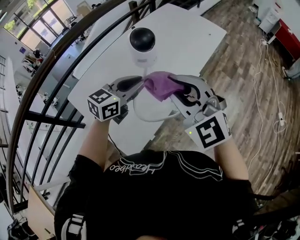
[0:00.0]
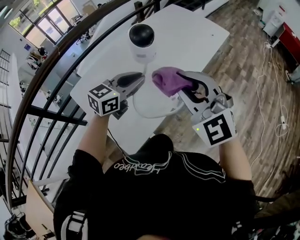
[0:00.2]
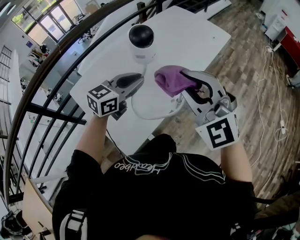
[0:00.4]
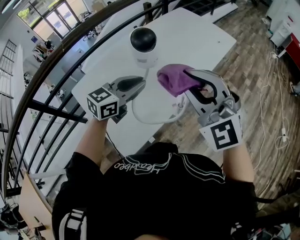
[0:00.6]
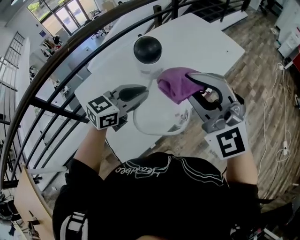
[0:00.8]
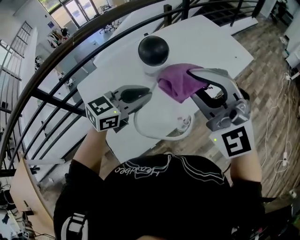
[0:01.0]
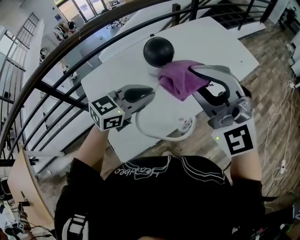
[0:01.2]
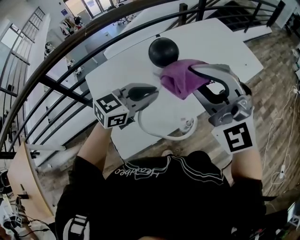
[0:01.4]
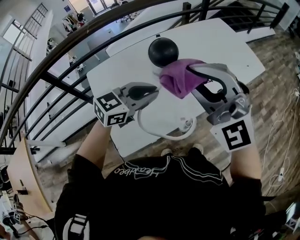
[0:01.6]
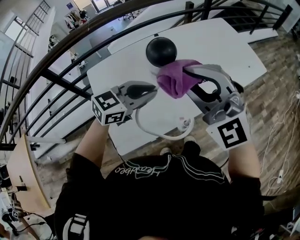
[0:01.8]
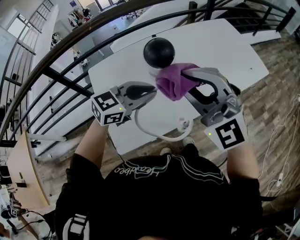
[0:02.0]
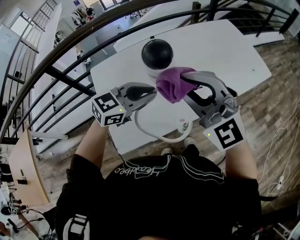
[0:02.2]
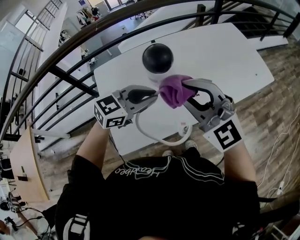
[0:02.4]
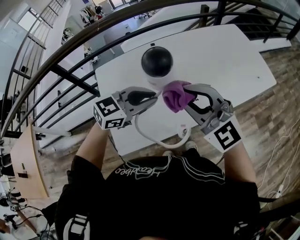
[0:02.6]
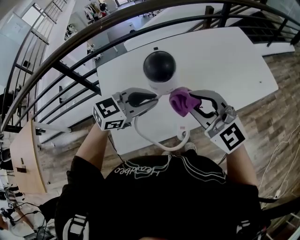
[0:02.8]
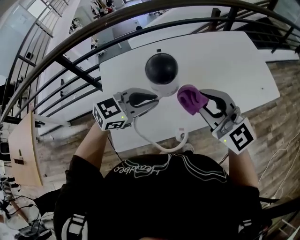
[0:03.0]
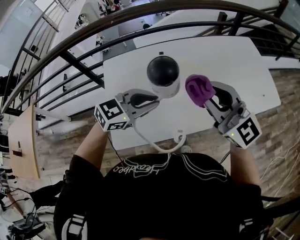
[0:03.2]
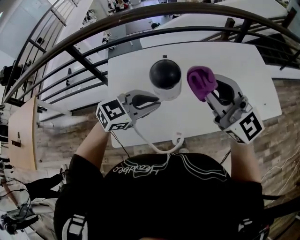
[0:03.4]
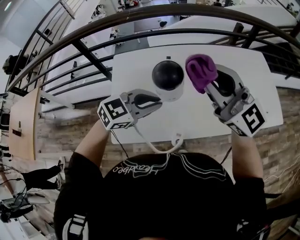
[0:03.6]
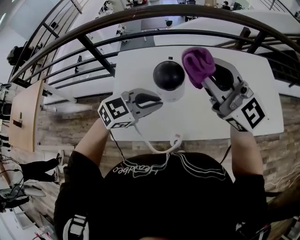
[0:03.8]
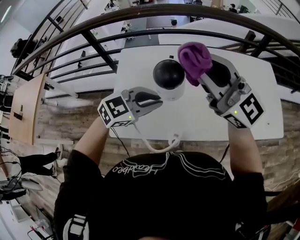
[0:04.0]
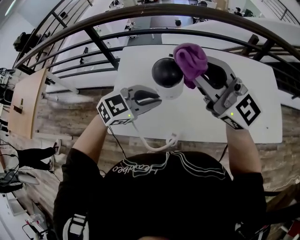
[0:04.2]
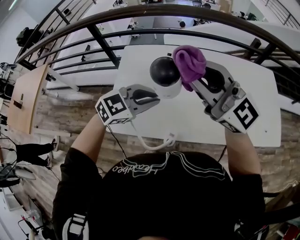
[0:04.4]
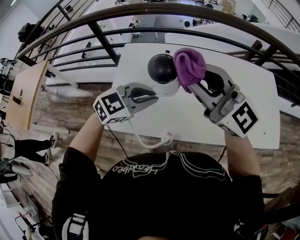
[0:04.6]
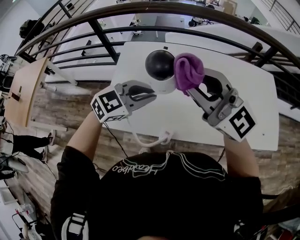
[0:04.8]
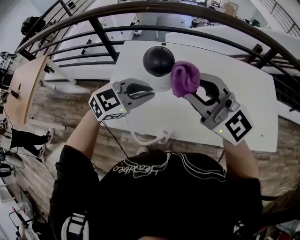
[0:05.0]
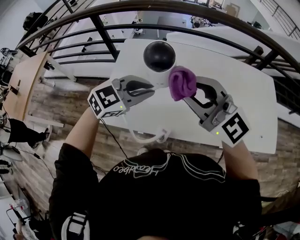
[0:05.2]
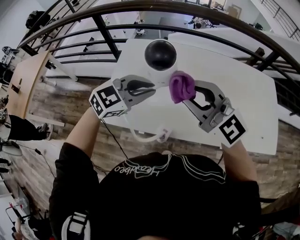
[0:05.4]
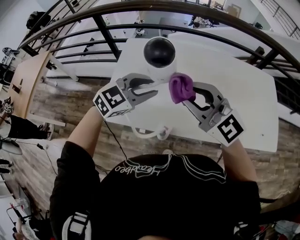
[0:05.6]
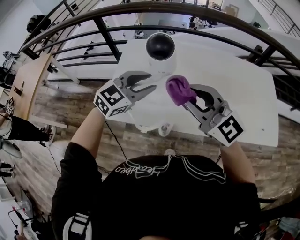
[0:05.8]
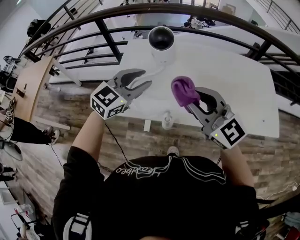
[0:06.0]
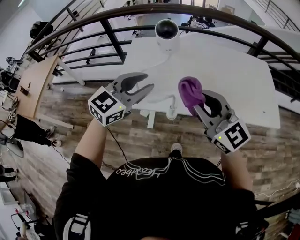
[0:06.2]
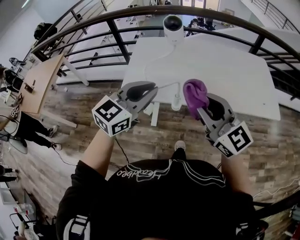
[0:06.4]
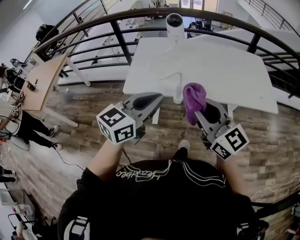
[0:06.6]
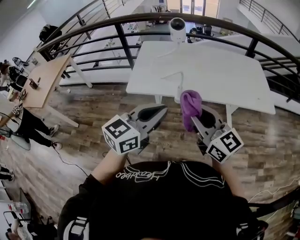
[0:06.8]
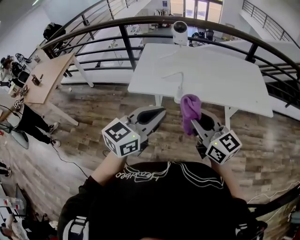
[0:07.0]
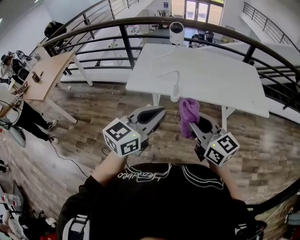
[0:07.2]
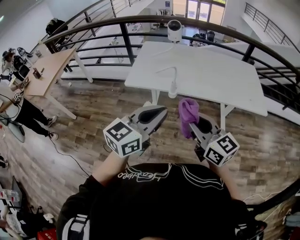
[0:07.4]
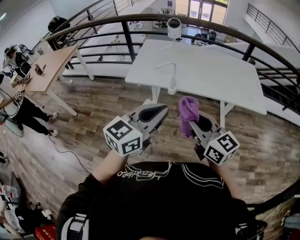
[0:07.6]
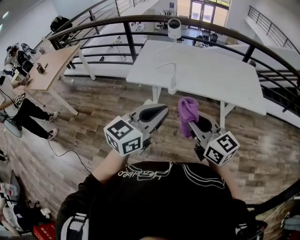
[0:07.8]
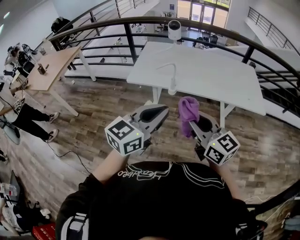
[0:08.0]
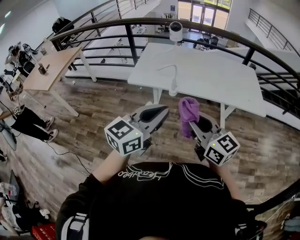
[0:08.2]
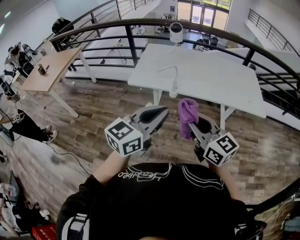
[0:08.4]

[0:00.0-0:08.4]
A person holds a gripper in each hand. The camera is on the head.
0:00.0 to 0:01.4: The right gripper moves forward and upward, some 10 cm, and changes its angle by about 30 degrees.
0:01.4 to 0:02.8: The right gripper heads downward, covering about 10 cm, and changes its angle by roughly 30 degrees.
0:02.8 to 0:04.2: The left gripper changes its angle by some 20 degrees; the right gripper travels upward and forward by roughly 15 cm, and changes its angle by about 30 degrees.
0:04.2 to 0:05.6: The right gripper heads downward and backward, covering about 10 cm.
0:05.6 to 0:07.0: The grippers both shift backward by about 40 cm. The left gripper swivels approximately 30 degrees, and closes. The right gripper rotates approximately 30 degrees.
0:07.0 to 0:08.4: The right gripper heads backward, covering approximately 10 cm; the left gripper shifts approximately 10 cm backward and to the right.

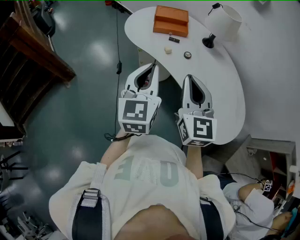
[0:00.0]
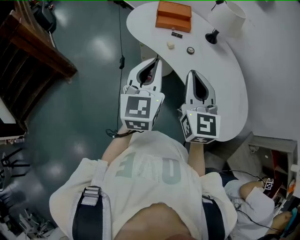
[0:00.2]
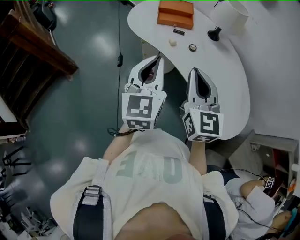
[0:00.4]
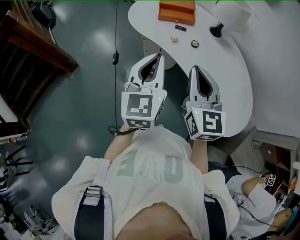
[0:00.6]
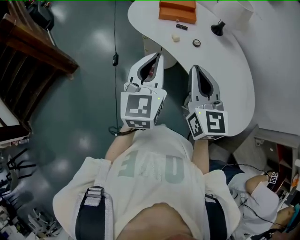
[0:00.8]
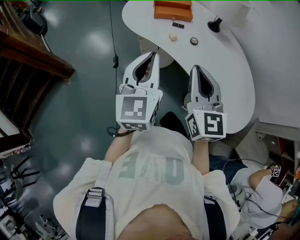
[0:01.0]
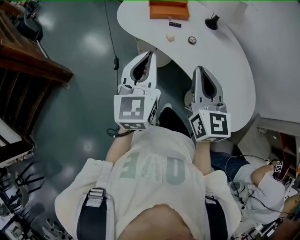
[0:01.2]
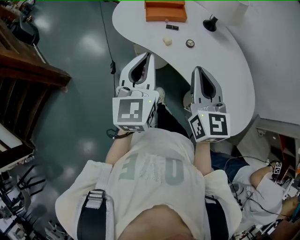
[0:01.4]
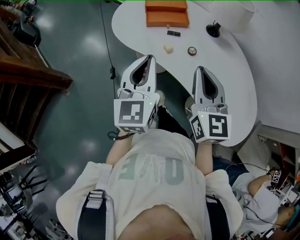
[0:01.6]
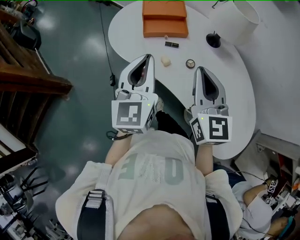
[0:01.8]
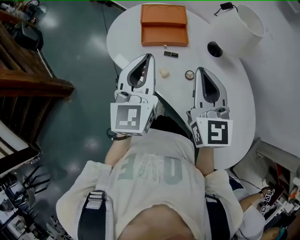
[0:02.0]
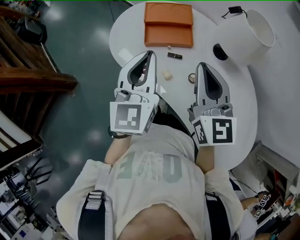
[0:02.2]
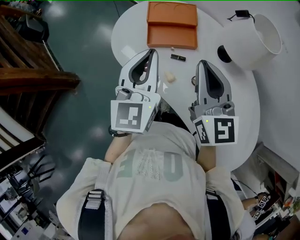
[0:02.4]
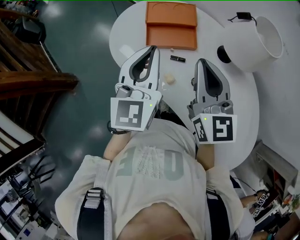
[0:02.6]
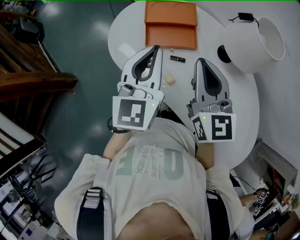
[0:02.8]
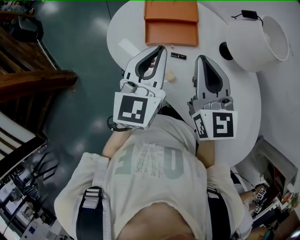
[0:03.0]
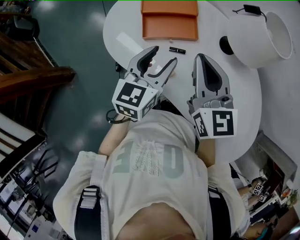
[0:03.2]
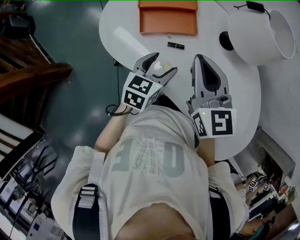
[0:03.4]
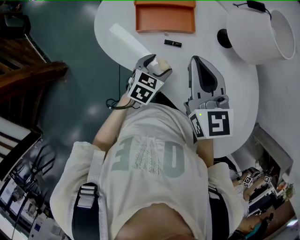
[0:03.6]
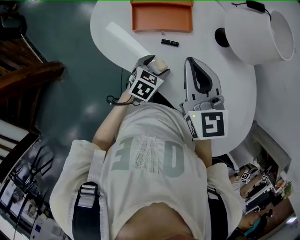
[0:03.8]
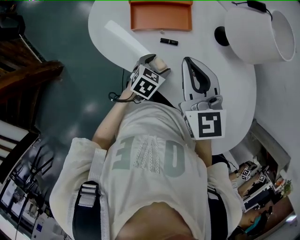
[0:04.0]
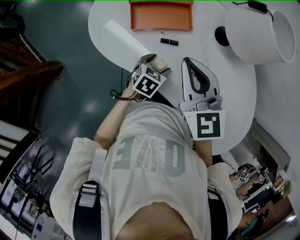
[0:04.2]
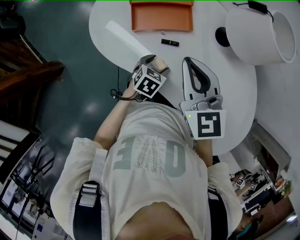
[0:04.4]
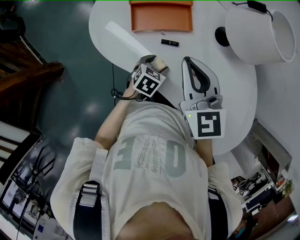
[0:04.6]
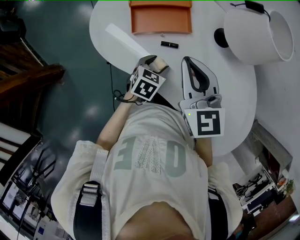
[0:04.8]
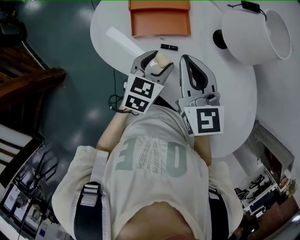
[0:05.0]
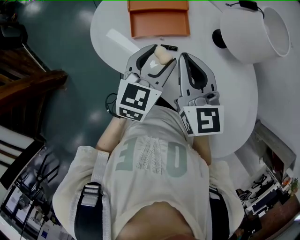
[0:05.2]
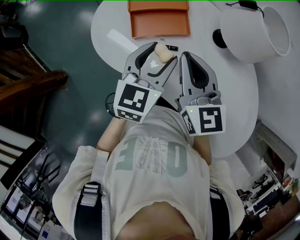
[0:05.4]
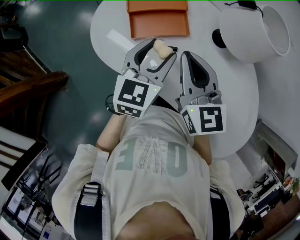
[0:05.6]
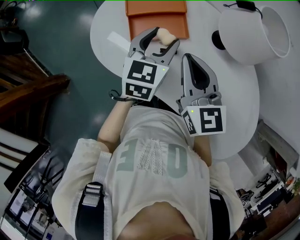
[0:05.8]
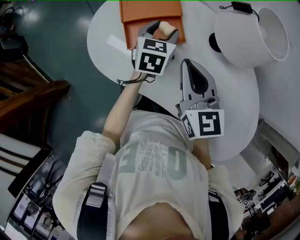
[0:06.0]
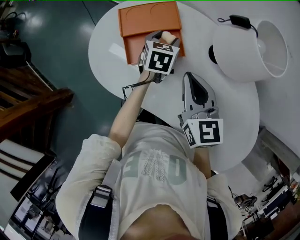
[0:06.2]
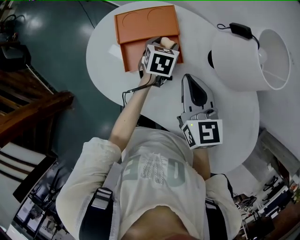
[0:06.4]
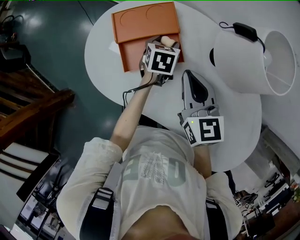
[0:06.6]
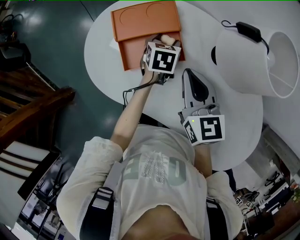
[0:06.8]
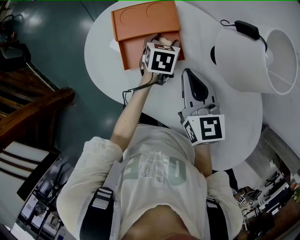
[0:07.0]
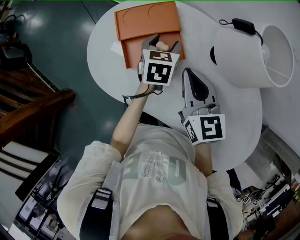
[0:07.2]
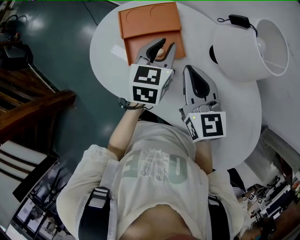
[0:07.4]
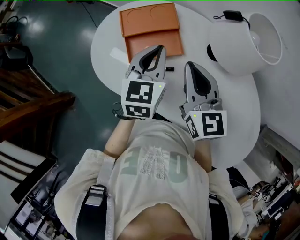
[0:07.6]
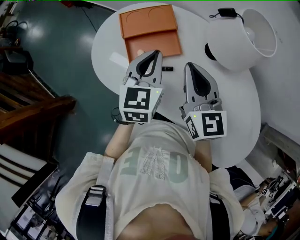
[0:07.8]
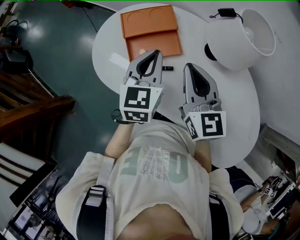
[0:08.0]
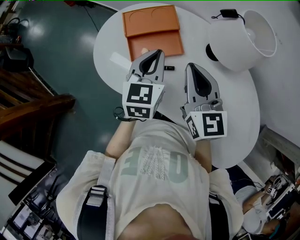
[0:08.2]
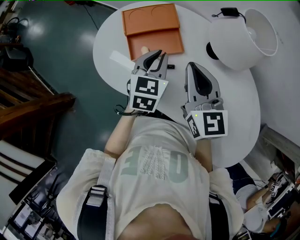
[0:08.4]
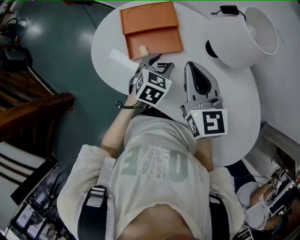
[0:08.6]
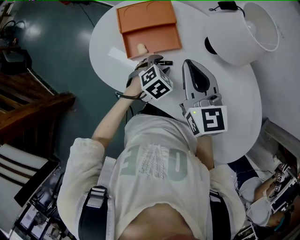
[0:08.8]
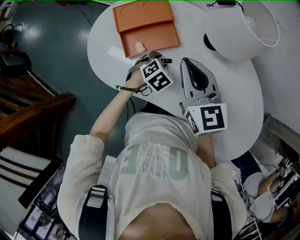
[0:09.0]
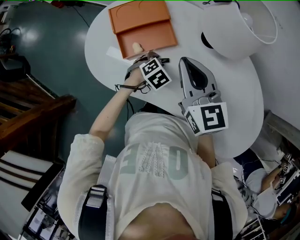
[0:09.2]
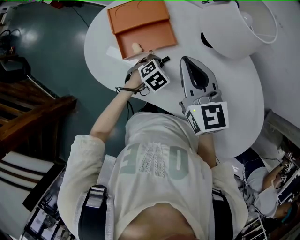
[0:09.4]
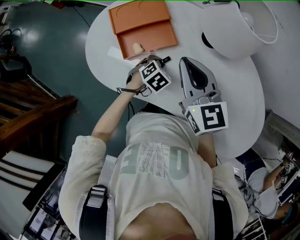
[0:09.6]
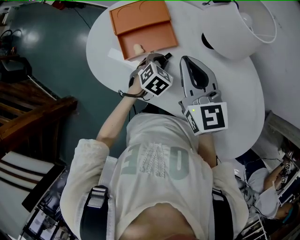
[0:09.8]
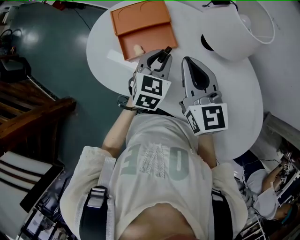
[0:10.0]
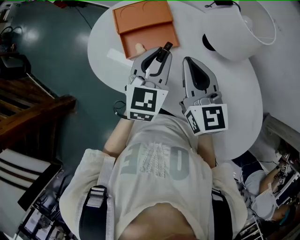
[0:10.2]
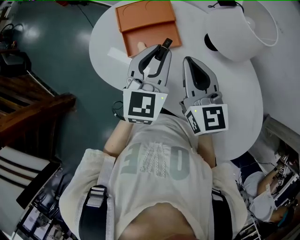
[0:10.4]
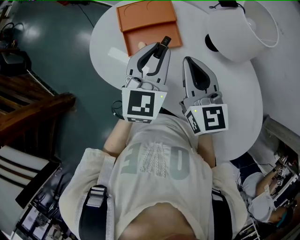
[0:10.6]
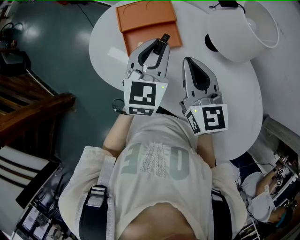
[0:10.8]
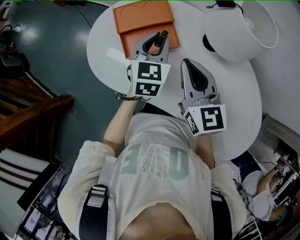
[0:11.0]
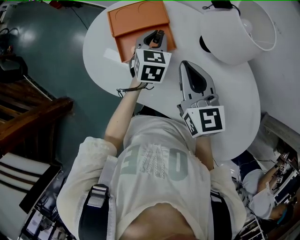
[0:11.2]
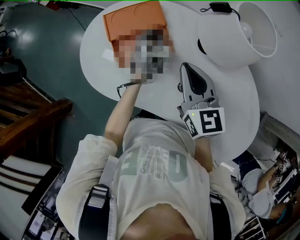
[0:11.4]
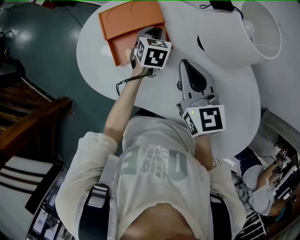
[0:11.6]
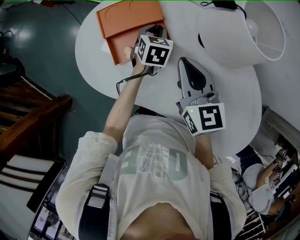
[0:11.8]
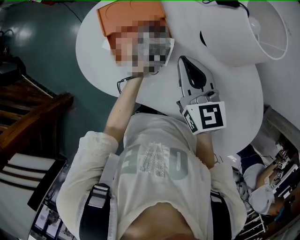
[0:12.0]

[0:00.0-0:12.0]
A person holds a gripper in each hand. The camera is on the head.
0:00.0 to 0:01.6: Both grippers move forward, approximately 15 cm.
0:01.6 to 0:03.0: Both grippers move forward, about 25 cm.
0:03.0 to 0:04.4: The left gripper heads downward, covering some 30 cm, tips its fingers downward by roughly 40 degrees, and opens its fingers; the right gripper shifts approximately 5 cm downward.
0:04.4 to 0:06.0: The left gripper shifts about 25 cm forward and upward, and turns by approximately 20 degrees.
0:06.0 to 0:07.6: The left gripper travels upward and backward by some 10 cm, and closes its fingers.
0:07.6 to 0:09.0: The left gripper is displaced downward by approximately 20 cm, tips its fingers downward by some 40 degrees, and opens its fingers.
0:09.0 to 0:10.4: The left gripper moves upward, roughly 25 cm, and tilts its fingers about 50 degrees upward.
0:10.4 to 0:12.0: The right gripper moves some 5 cm, while the left gripper heads downward and forward, covering some 25 cm, and tilts its fingers approximately 30 degrees downward.

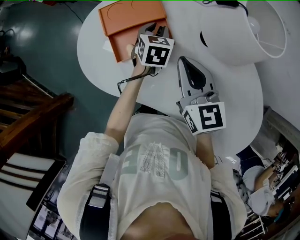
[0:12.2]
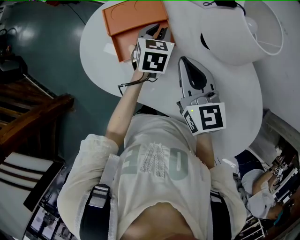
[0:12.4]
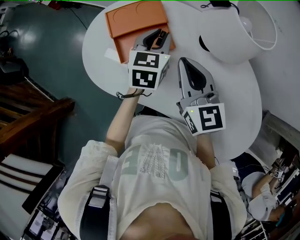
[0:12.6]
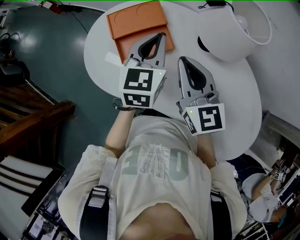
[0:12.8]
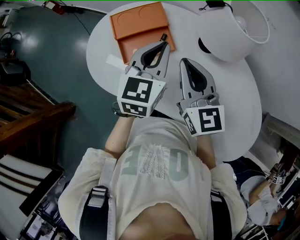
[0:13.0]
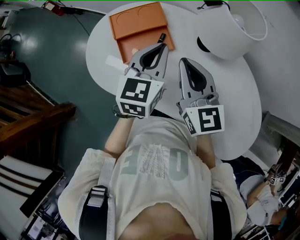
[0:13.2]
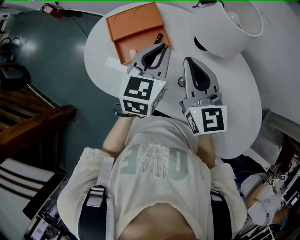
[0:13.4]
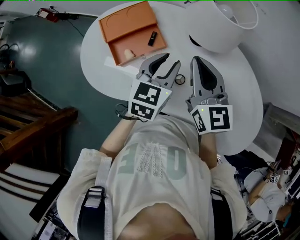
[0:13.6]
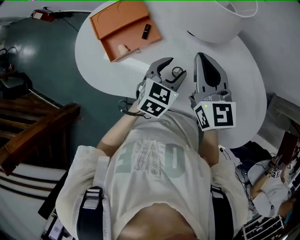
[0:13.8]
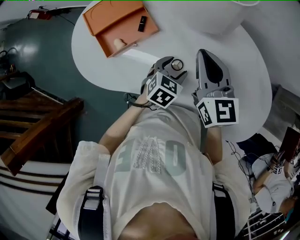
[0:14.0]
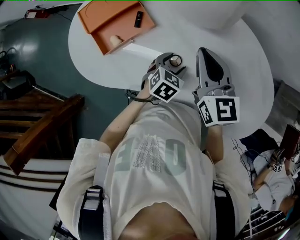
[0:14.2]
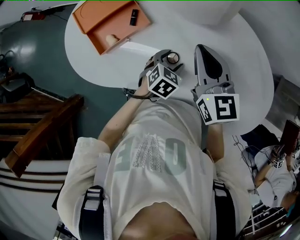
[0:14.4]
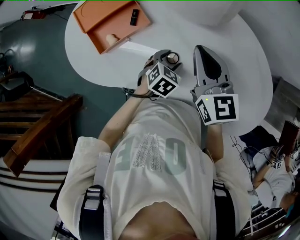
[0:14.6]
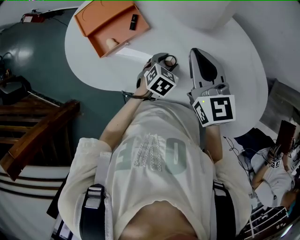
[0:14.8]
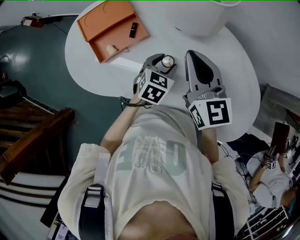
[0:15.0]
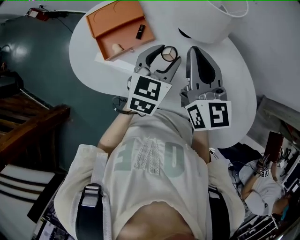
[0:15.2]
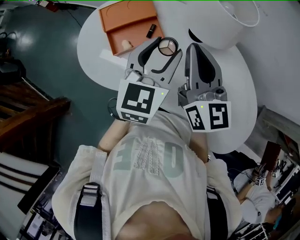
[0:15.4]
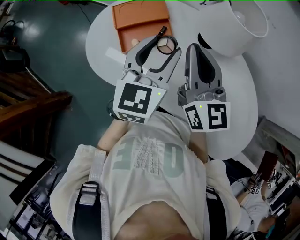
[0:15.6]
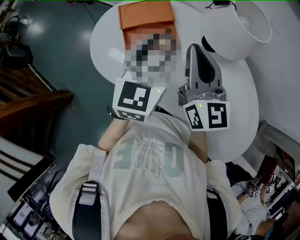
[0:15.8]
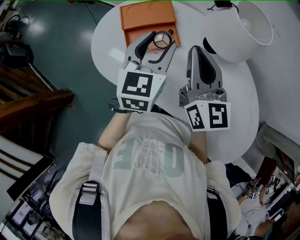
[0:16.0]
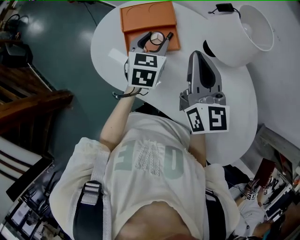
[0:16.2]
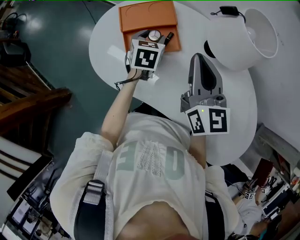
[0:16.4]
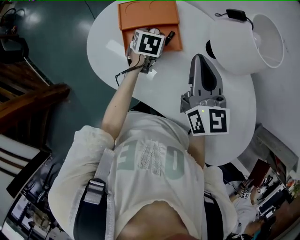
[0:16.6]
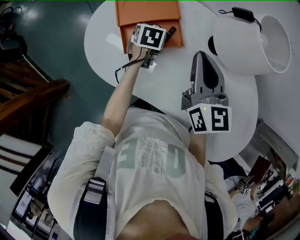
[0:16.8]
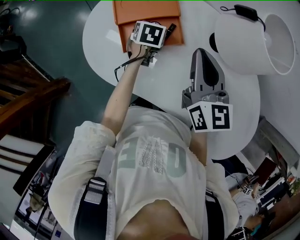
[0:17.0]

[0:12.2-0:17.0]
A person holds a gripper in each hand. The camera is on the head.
0:12.2 to 0:13.8: The left gripper goes about 25 cm backward and to the right, rotates approximately 30 degrees, and opens up, while the right gripper goes approximately 10 cm to the right.
0:13.8 to 0:15.4: The right gripper moves upward, roughly 5 cm. Meanwhile the left gripper travels upward and to the left by about 15 cm, and changes its angle by about 30 degrees.
0:15.4 to 0:17.0: The left gripper heads downward, forward and to the left, covering some 30 cm, and angles its fingers downward, by roughly 40 degrees, while the right gripper travels downward and forward by some 10 cm.
